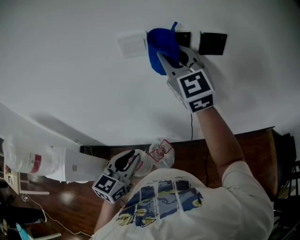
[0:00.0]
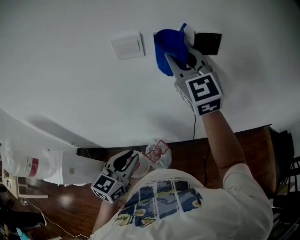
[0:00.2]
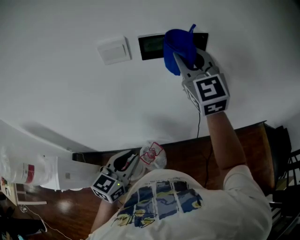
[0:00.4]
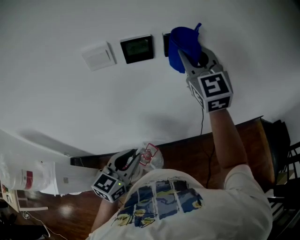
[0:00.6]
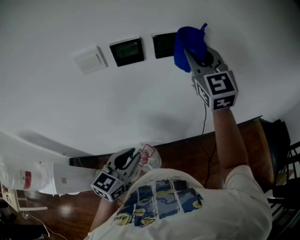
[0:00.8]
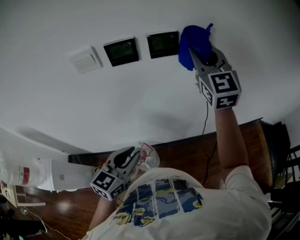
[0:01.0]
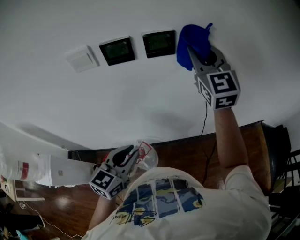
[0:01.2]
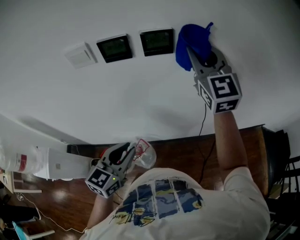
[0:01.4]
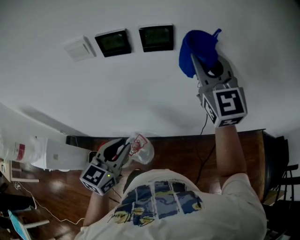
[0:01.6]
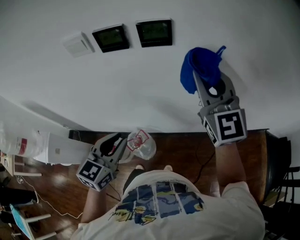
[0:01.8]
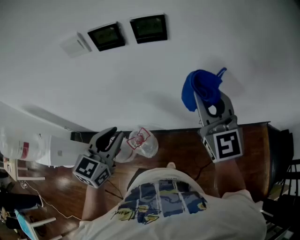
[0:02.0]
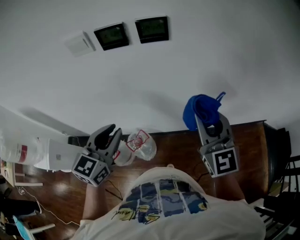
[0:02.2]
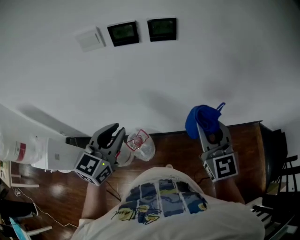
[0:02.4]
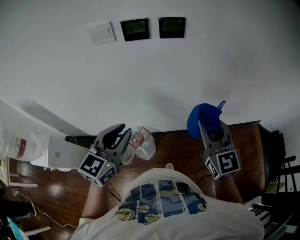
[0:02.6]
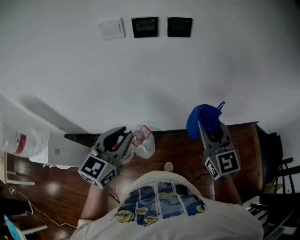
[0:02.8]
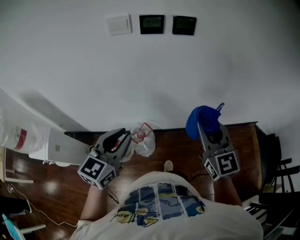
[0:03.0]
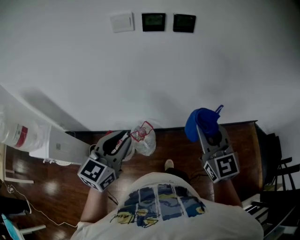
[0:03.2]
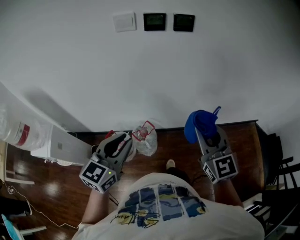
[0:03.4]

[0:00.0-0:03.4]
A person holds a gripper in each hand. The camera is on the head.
0:00.0 to 0:01.6: The right gripper goes roughly 30 cm to the right, while the left gripper shifts approximately 15 cm to the right.
0:01.6 to 0:03.4: The left gripper is displaced backward and to the left by some 20 cm. The right gripper heads backward and downward, covering about 35 cm.

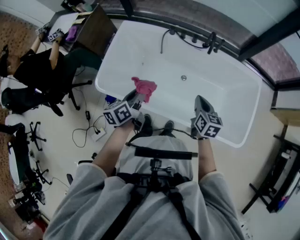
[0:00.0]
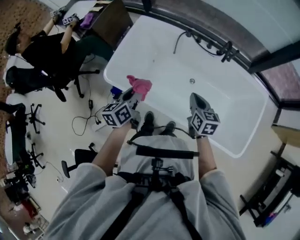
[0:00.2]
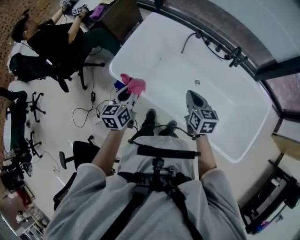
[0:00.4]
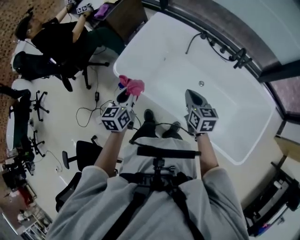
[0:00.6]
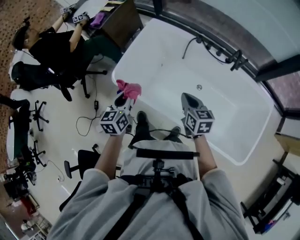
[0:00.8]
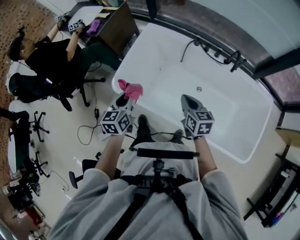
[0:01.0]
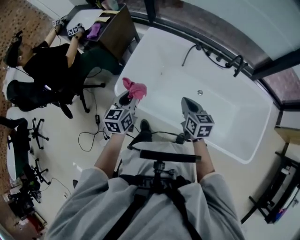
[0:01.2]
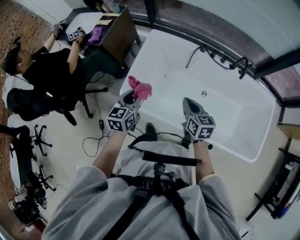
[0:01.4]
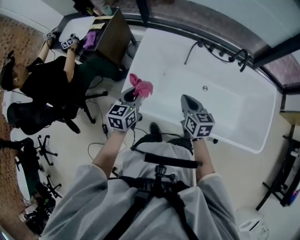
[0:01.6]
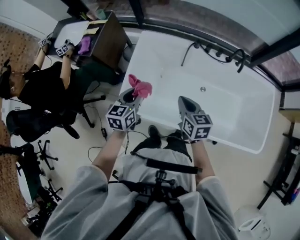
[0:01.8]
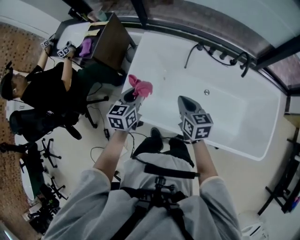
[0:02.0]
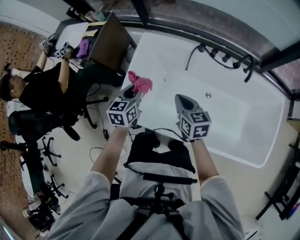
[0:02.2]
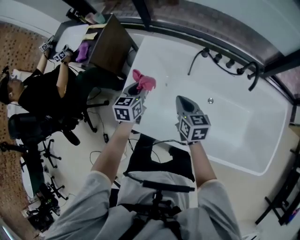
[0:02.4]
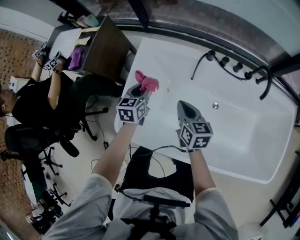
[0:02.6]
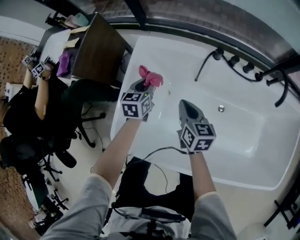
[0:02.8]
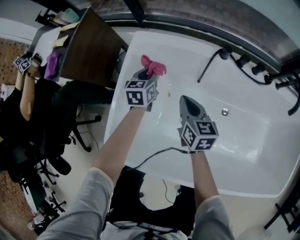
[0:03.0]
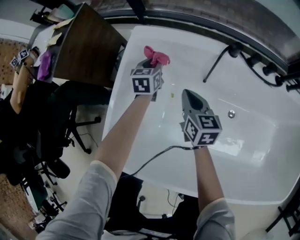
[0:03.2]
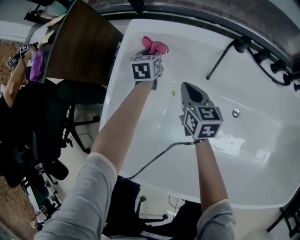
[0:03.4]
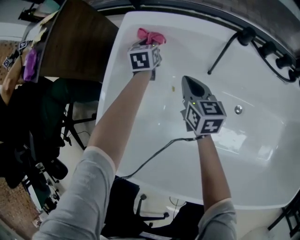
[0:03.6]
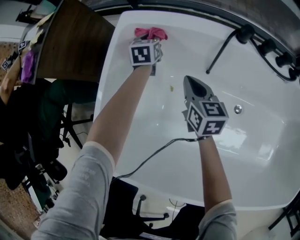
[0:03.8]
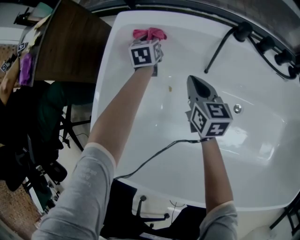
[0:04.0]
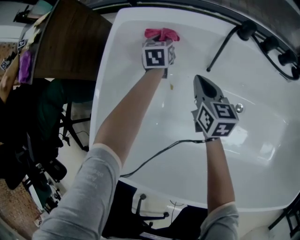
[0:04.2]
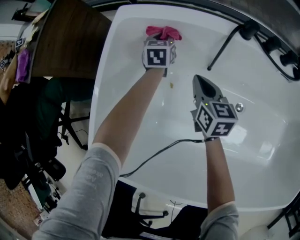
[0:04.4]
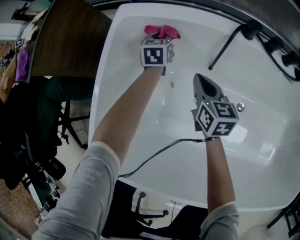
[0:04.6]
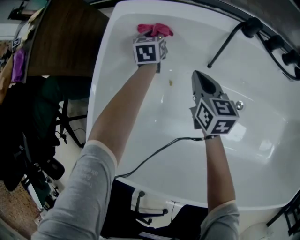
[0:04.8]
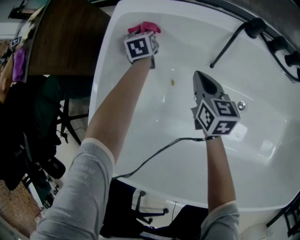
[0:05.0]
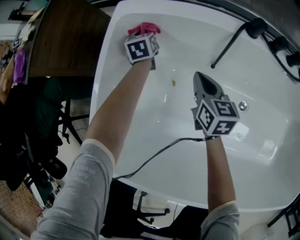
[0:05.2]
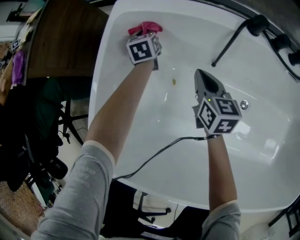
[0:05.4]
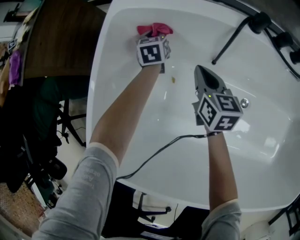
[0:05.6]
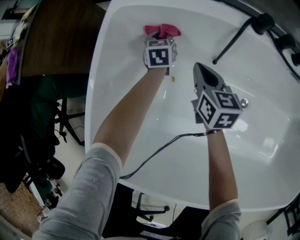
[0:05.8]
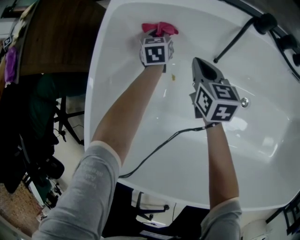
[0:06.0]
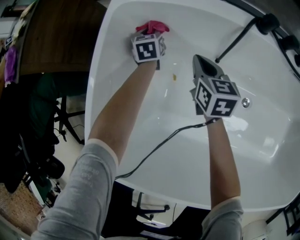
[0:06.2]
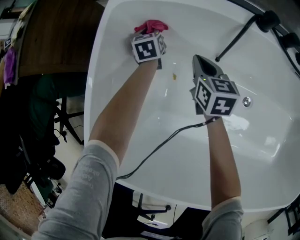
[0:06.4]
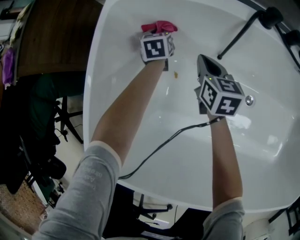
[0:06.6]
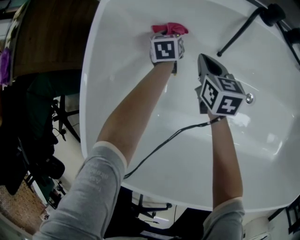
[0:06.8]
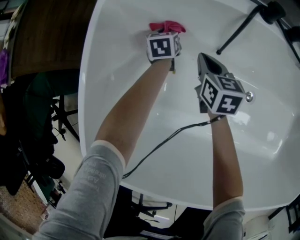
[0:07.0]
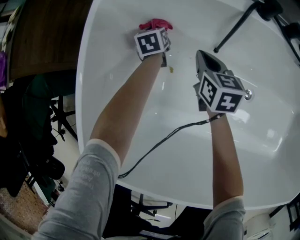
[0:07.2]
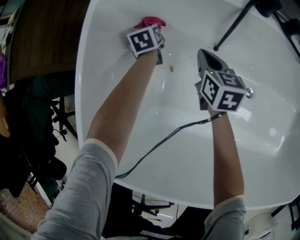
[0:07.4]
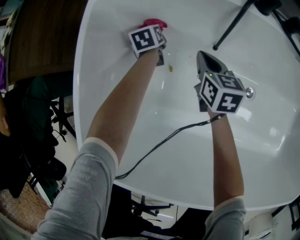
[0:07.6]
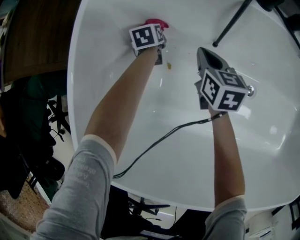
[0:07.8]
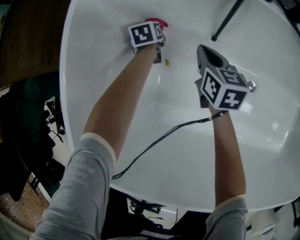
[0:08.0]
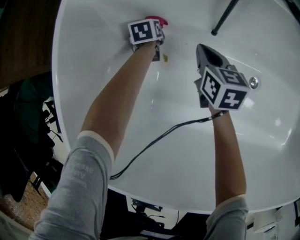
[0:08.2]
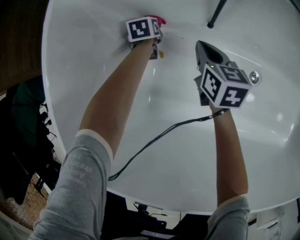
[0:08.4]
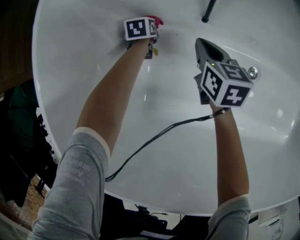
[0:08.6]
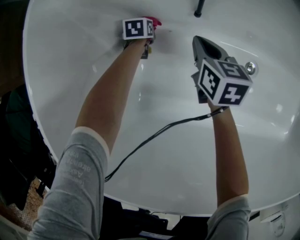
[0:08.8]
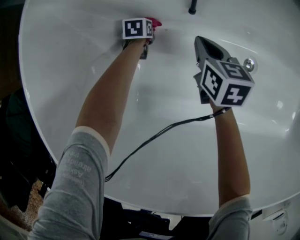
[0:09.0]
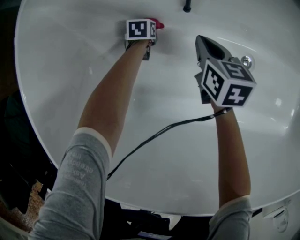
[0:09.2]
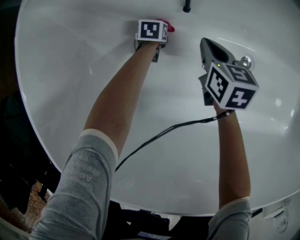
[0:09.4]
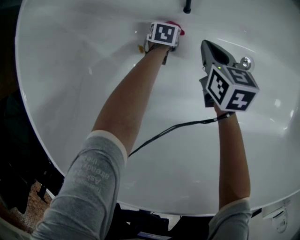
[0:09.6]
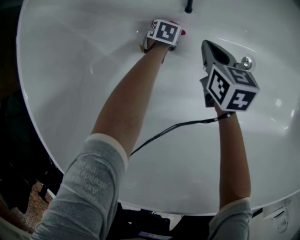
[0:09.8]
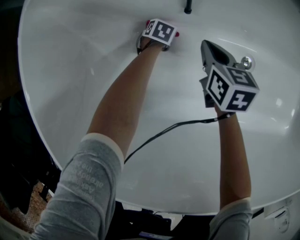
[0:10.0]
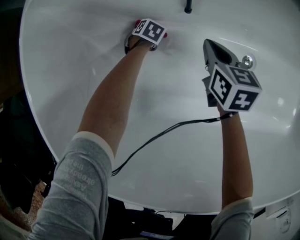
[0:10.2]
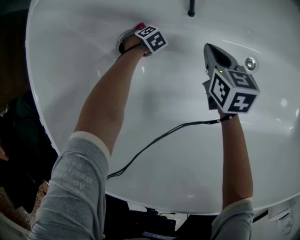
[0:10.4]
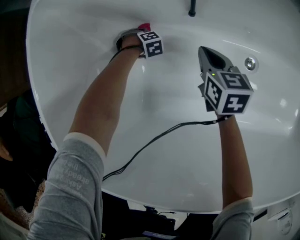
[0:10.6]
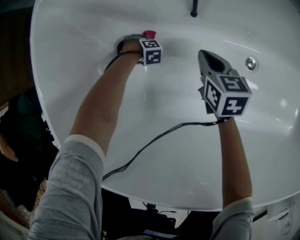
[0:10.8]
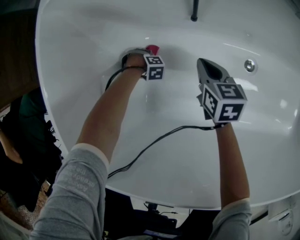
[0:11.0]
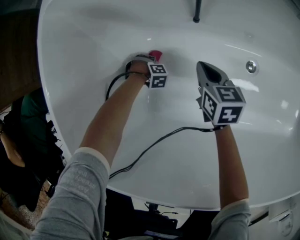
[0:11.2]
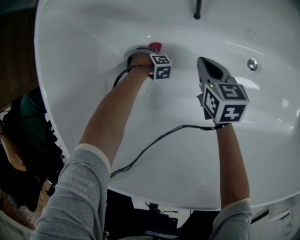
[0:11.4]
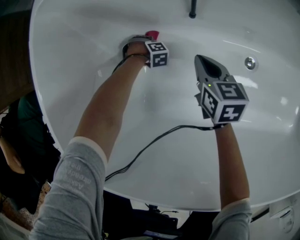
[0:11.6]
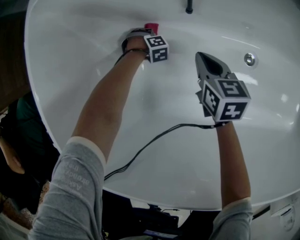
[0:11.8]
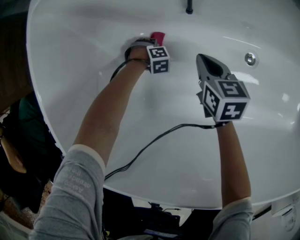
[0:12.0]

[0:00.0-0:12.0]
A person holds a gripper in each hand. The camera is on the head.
0:00.0 to 0:01.6: The grippers both shift to the left and forward by about 30 cm. The left gripper swivels roughly 40 degrees.
0:01.6 to 0:03.0: The two grippers go some 50 cm forward and downward.
0:03.0 to 0:04.4: Both grippers travel together downward and forward, some 20 cm.
0:04.4 to 0:06.0: The right gripper shifts by some 5 cm. Meanwhile the left gripper heads downward, covering about 5 cm.
0:06.0 to 0:07.6: The right gripper goes roughly 5 cm downward. Meanwhile the left gripper moves left and right over some 5 cm, changing direction 2 times.
0:07.6 to 0:09.0: The right gripper goes some 15 cm downward, to the right and backward; the left gripper shifts some 20 cm downward and to the right, and swivels approximately 30 degrees.
0:09.0 to 0:10.4: The left gripper twists approximately 60 degrees clockwise, seen from behind.
0:10.4 to 0:12.0: The left gripper turns by about 30 degrees.

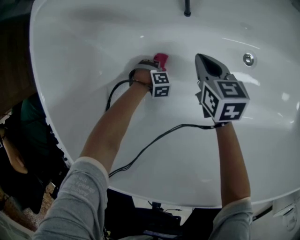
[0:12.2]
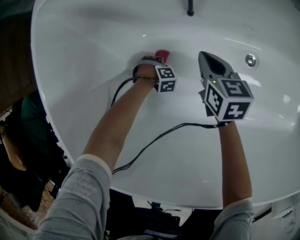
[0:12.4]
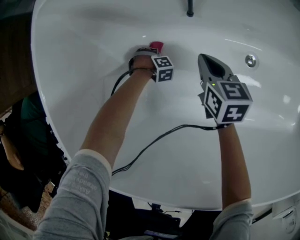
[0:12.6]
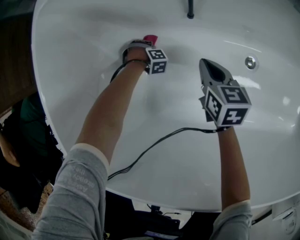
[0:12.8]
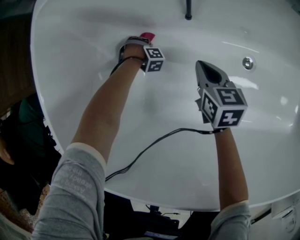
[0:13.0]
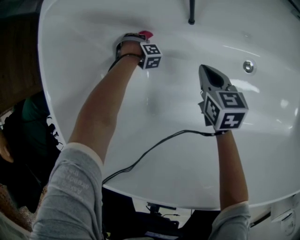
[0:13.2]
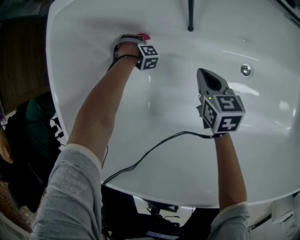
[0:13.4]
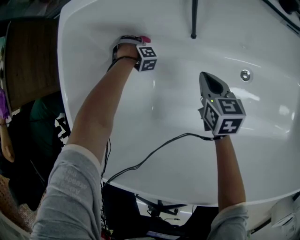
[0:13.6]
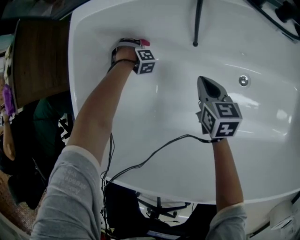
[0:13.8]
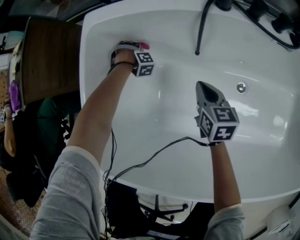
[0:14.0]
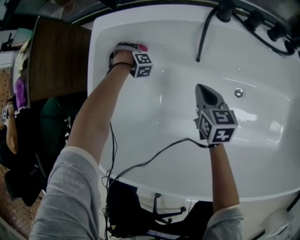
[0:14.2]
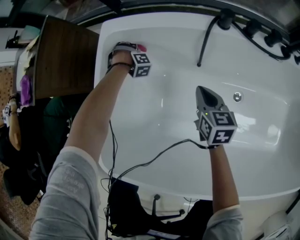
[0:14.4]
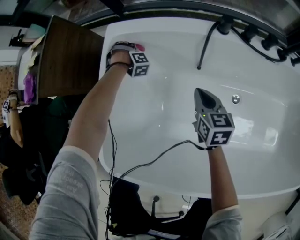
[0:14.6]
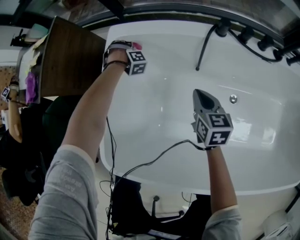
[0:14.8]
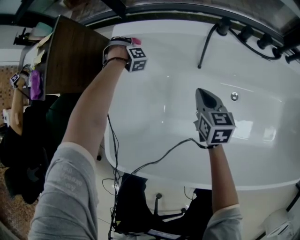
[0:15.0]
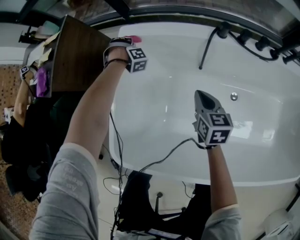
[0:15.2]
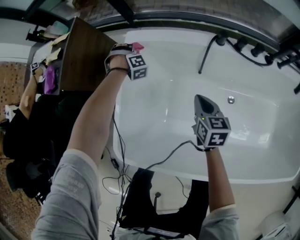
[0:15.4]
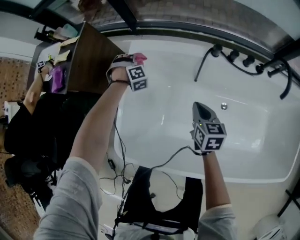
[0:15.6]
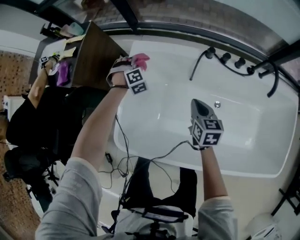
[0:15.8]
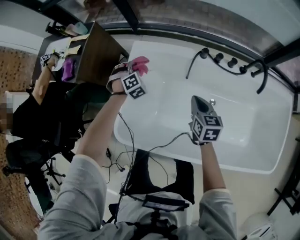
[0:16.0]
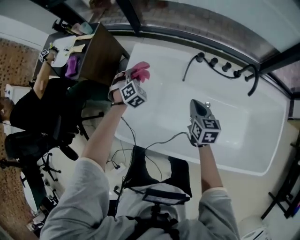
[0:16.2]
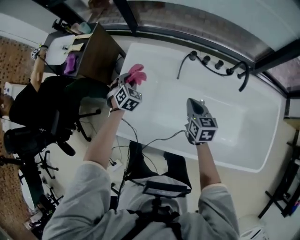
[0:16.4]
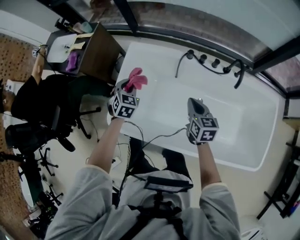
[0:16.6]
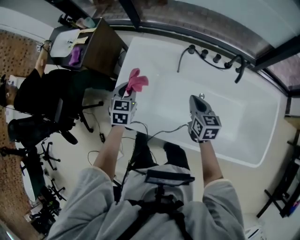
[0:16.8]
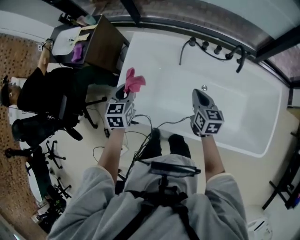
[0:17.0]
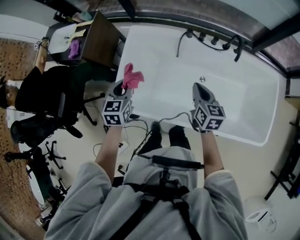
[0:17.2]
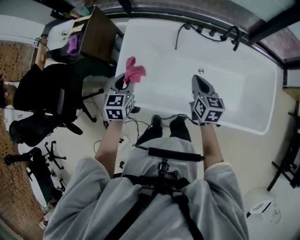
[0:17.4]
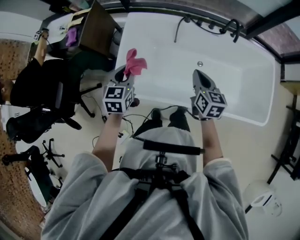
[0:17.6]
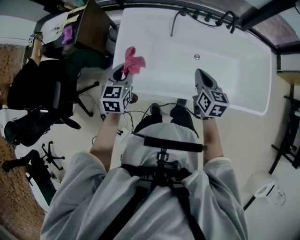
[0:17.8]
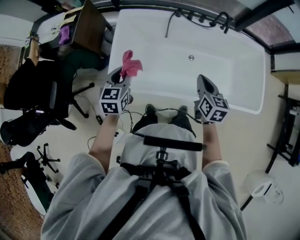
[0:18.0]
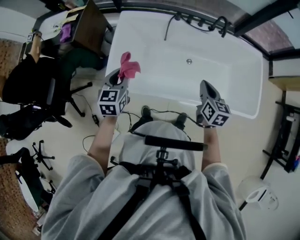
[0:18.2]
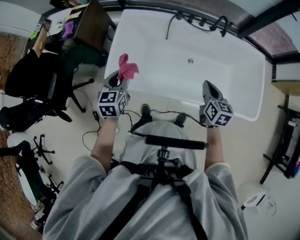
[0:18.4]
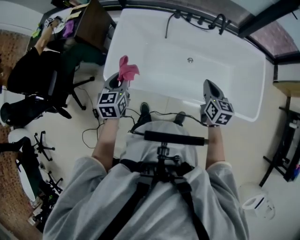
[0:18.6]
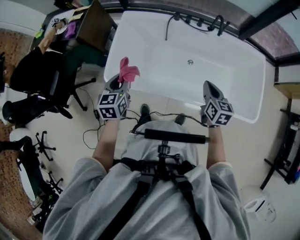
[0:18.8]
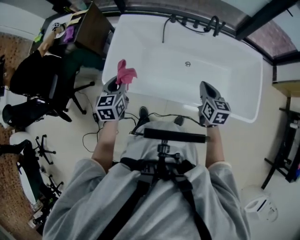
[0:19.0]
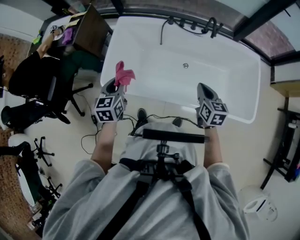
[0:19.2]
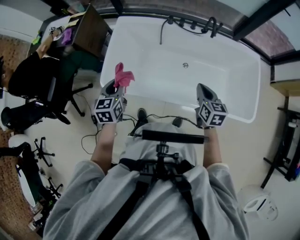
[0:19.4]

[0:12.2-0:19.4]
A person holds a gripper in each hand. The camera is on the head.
0:12.2 to 0:13.6: The right gripper shifts roughly 5 cm upward, while the left gripper moves about 25 cm, and swivels approximately 30 degrees.
0:13.6 to 0:15.0: The left gripper moves upward and forward, approximately 30 cm. The right gripper is displaced upward by approximately 20 cm.
0:15.0 to 0:16.6: Both grippers move upward and backward, about 40 cm. The left gripper rotates around the line of its fingers by about 80 degrees, counterclockwise from behind.
0:16.6 to 0:18.0: The right gripper moves backward, approximately 25 cm. The left gripper travels backward and upward by roughly 25 cm, and turns by approximately 30 degrees.
0:18.0 to 0:19.4: The right gripper moves to the right, about 15 cm, while the left gripper moves to the right and backward, about 10 cm.

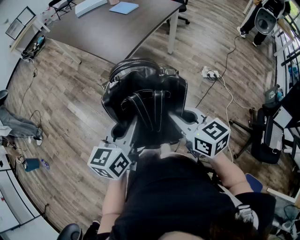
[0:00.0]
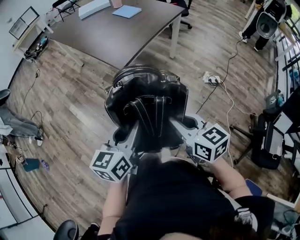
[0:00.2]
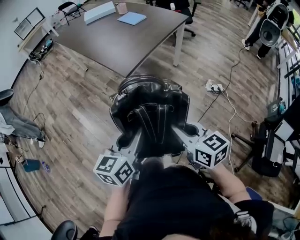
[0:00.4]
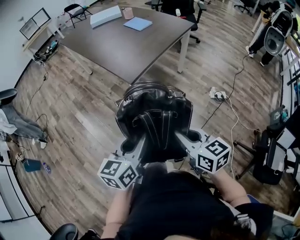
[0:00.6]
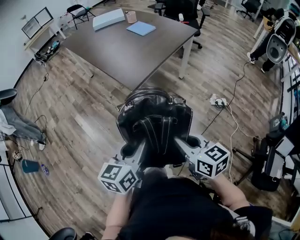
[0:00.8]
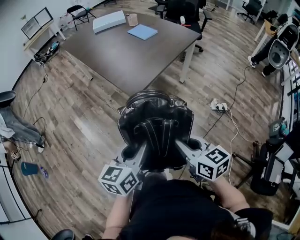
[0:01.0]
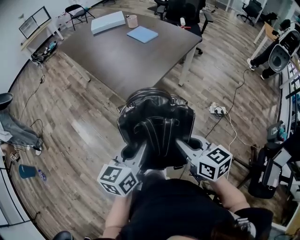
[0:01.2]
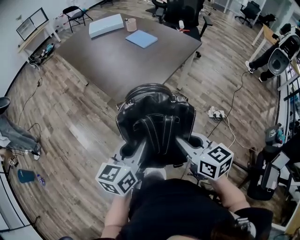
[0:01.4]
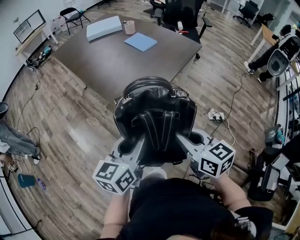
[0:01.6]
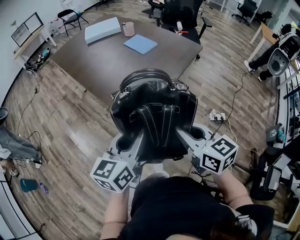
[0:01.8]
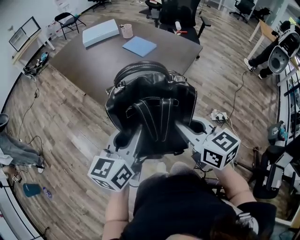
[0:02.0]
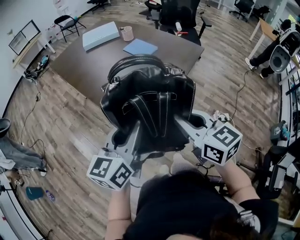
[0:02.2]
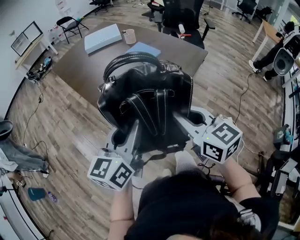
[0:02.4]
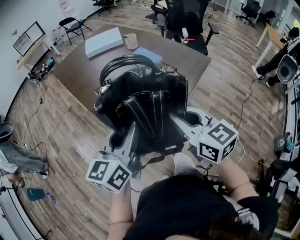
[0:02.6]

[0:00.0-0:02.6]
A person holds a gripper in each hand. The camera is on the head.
0:00.0 to 0:01.2: Both grippers move forward, some 15 cm.
0:01.2 to 0:02.6: The two grippers go roughly 30 cm forward.
